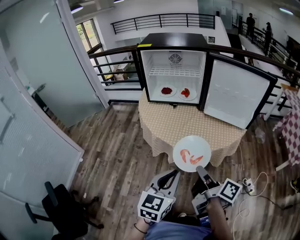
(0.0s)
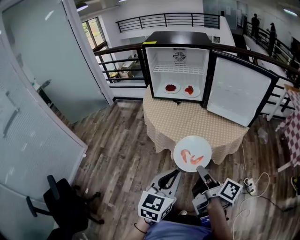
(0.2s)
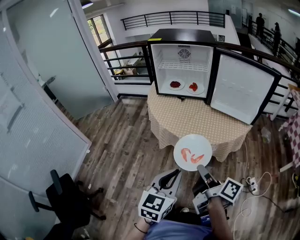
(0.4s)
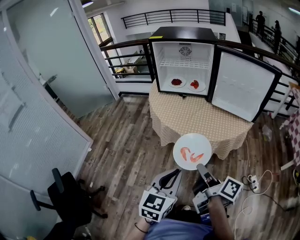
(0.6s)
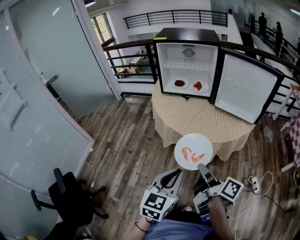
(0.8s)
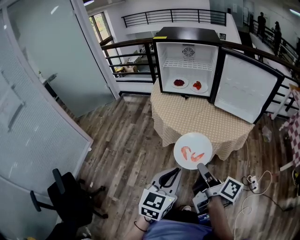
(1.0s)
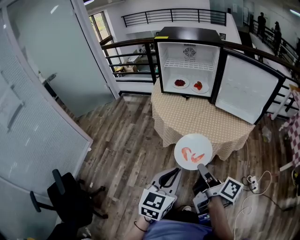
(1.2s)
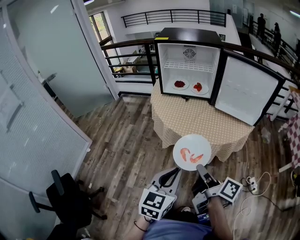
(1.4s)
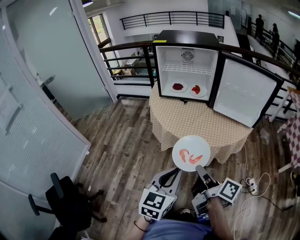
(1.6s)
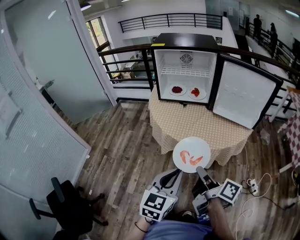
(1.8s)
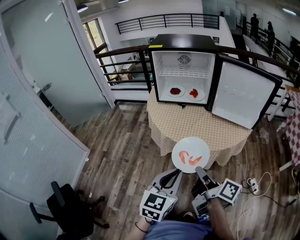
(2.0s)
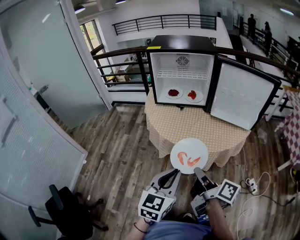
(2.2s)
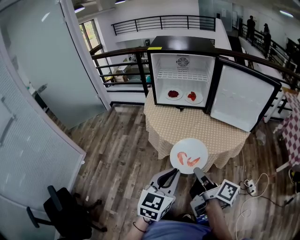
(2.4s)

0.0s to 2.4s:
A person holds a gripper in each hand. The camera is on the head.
0.0s to 1.2s: The left gripper goes about 5 cm backward, while the right gripper is displaced to the left by about 5 cm.
1.2s to 2.4s: The left gripper shifts about 5 cm forward; the right gripper changes place by about 5 cm.

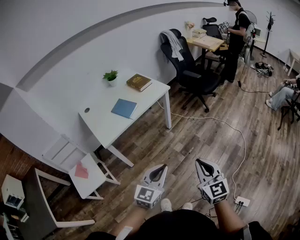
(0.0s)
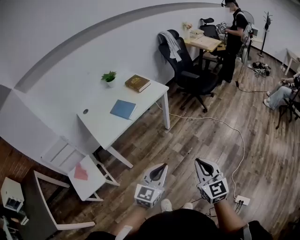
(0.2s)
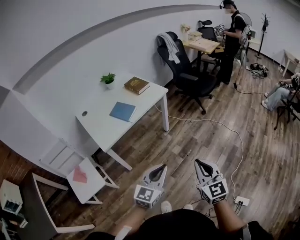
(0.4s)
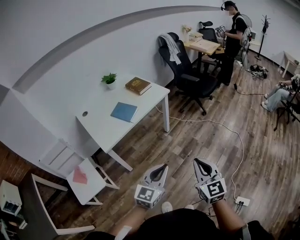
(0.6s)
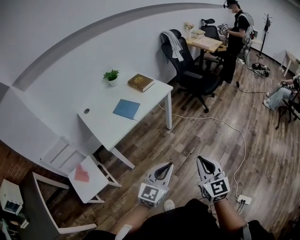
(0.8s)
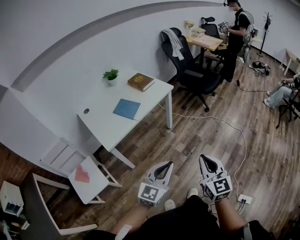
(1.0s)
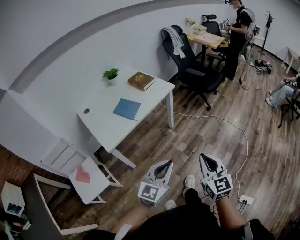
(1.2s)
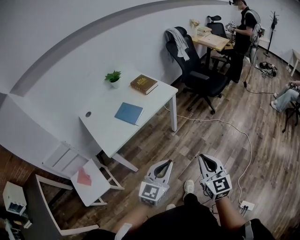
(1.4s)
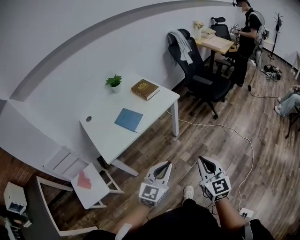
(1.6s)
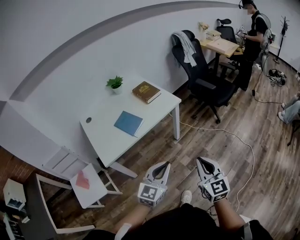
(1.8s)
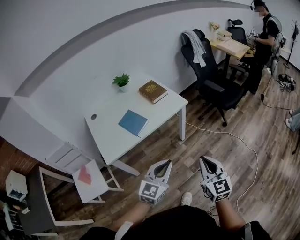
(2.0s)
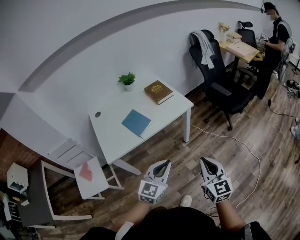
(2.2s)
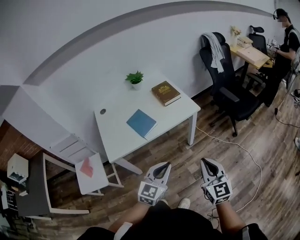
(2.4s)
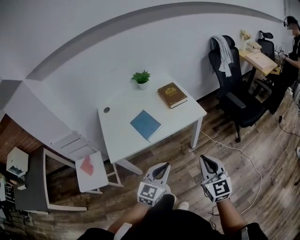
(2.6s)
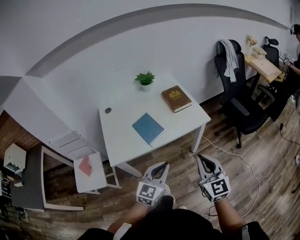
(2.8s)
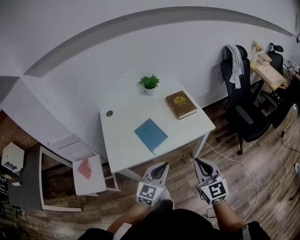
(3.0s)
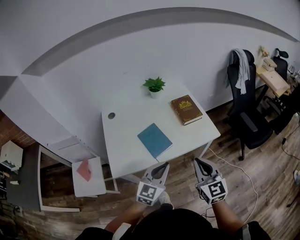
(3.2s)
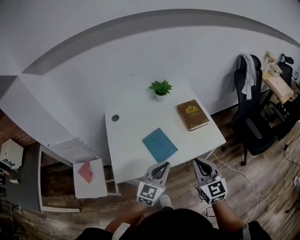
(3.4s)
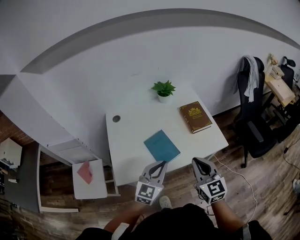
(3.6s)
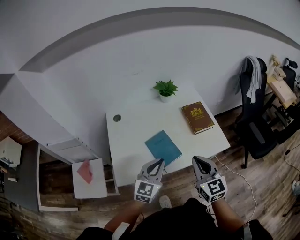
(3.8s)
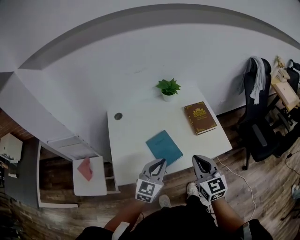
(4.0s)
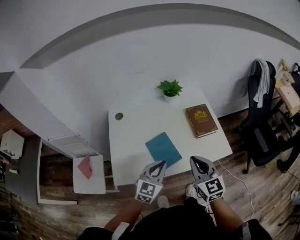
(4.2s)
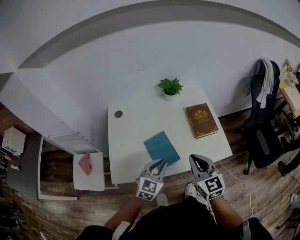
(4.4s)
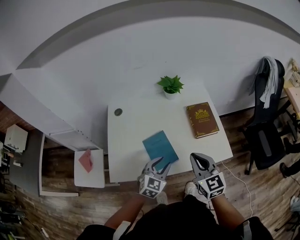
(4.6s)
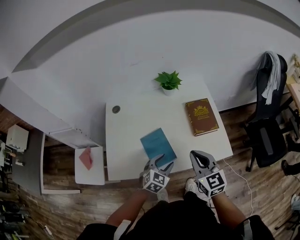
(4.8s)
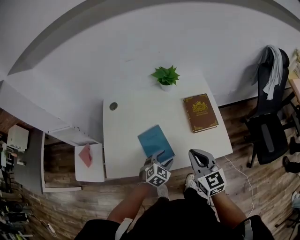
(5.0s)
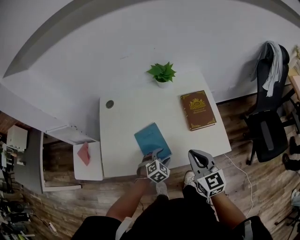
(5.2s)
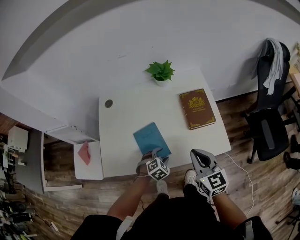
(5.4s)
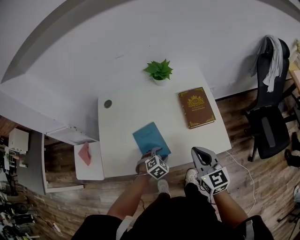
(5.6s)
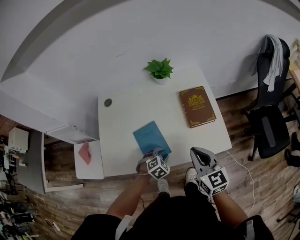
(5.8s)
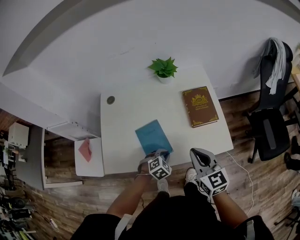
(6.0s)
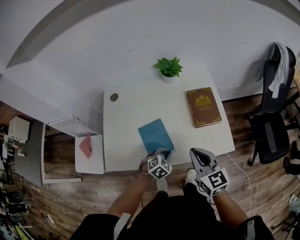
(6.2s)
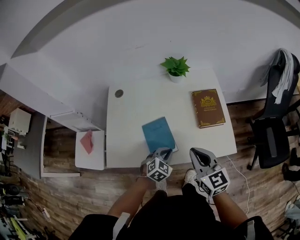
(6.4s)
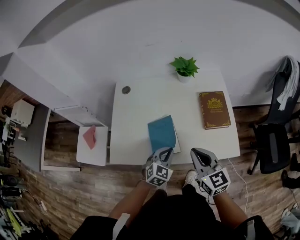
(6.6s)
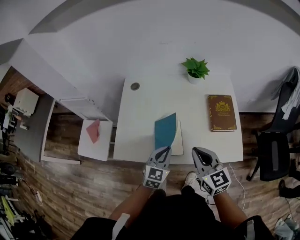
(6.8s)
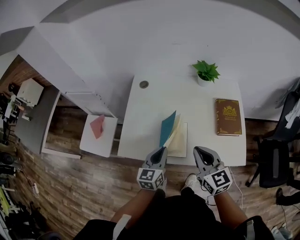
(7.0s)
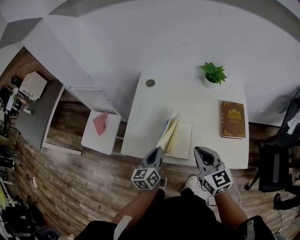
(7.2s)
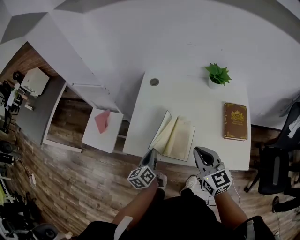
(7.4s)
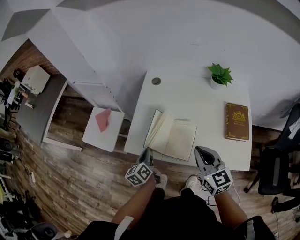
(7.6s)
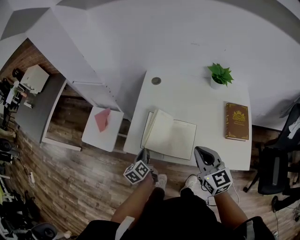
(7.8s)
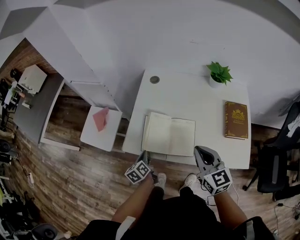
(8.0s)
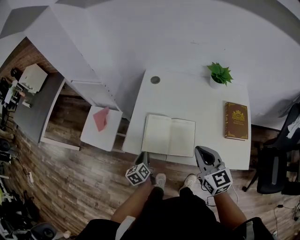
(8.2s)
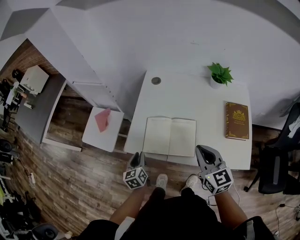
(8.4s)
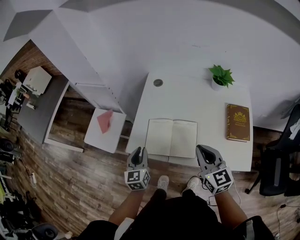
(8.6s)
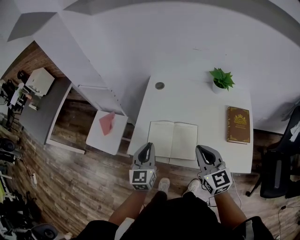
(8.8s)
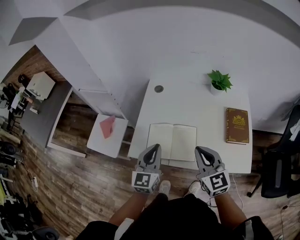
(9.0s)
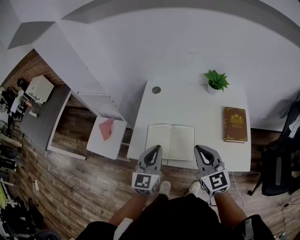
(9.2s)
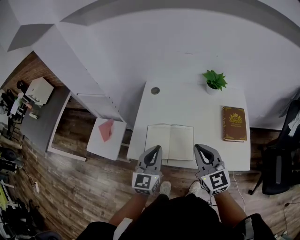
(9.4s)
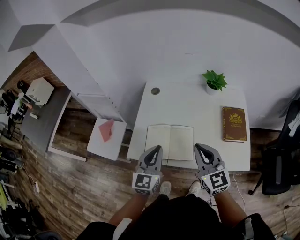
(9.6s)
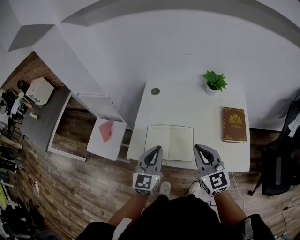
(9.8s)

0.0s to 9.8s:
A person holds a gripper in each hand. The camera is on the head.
0.0s to 1.4s: Both grippers move forward and to the left, some 10 cm.
1.4s to 2.8s: Both grippers move forward, some 25 cm. The right gripper swivels approximately 30 degrees. The left gripper turns by about 20 degrees.
2.8s to 4.2s: Both grippers travel together forward and to the left, roughly 25 cm.
4.2s to 5.6s: The right gripper shifts about 15 cm to the right, forward and downward. The left gripper goes approximately 20 cm downward, tilts its fingers roughly 50 degrees downward, and opens.
5.6s to 7.0s: The left gripper is displaced upward and to the left by roughly 20 cm, tilts its fingers some 50 degrees upward, and closes its fingers. Meanwhile the right gripper travels to the left by roughly 15 cm.
7.0s to 8.4s: The right gripper moves roughly 5 cm. The left gripper is displaced to the left and downward by approximately 20 cm, and changes its angle by roughly 30 degrees.
8.4s to 9.8s: The right gripper shifts some 5 cm upward. Meanwhile the left gripper goes roughly 25 cm upward and to the right, and rotates roughly 40 degrees.

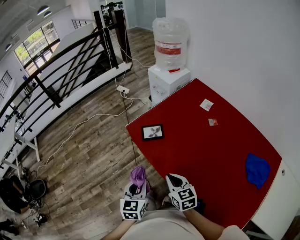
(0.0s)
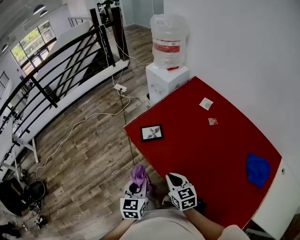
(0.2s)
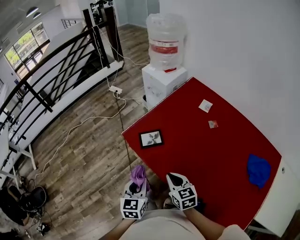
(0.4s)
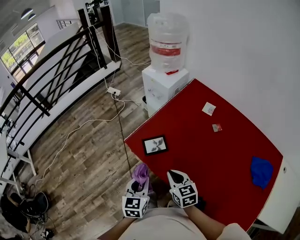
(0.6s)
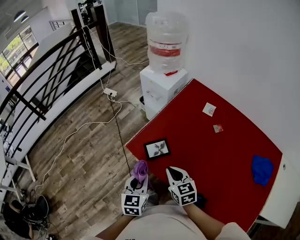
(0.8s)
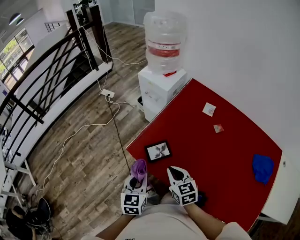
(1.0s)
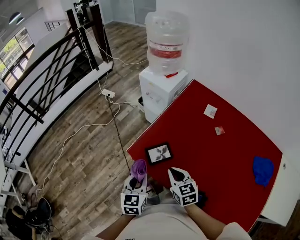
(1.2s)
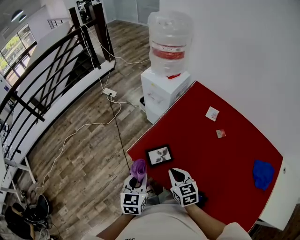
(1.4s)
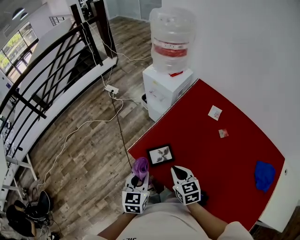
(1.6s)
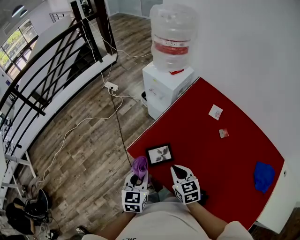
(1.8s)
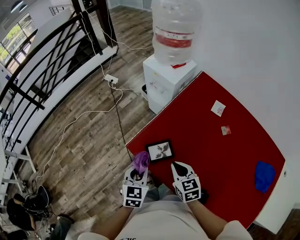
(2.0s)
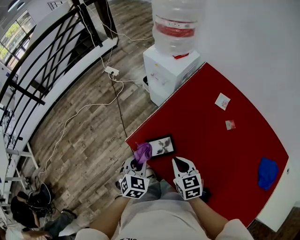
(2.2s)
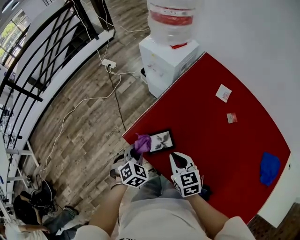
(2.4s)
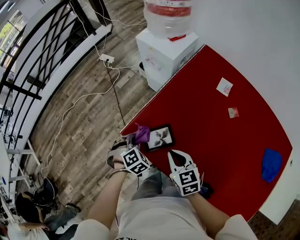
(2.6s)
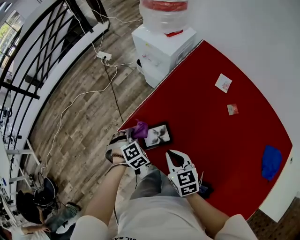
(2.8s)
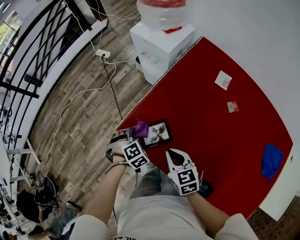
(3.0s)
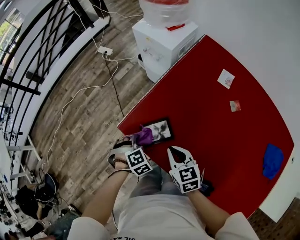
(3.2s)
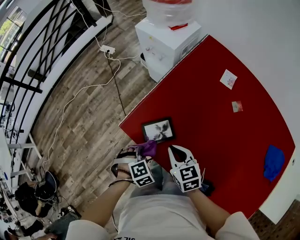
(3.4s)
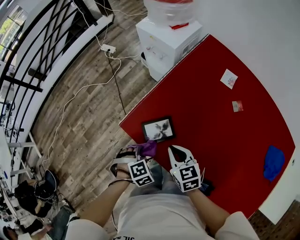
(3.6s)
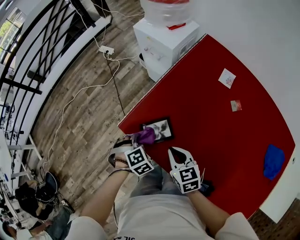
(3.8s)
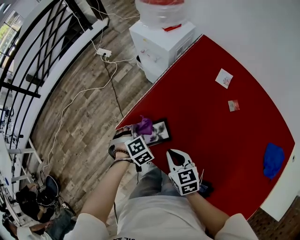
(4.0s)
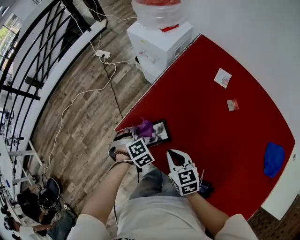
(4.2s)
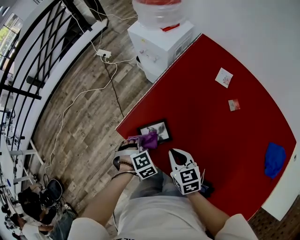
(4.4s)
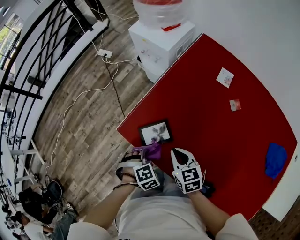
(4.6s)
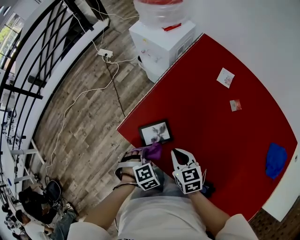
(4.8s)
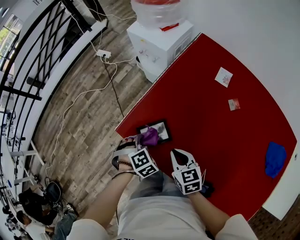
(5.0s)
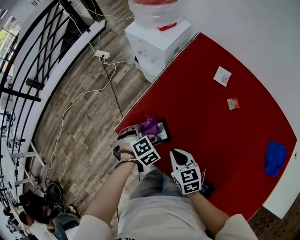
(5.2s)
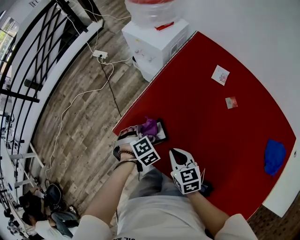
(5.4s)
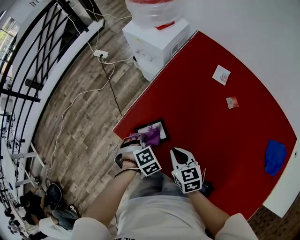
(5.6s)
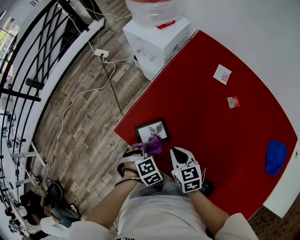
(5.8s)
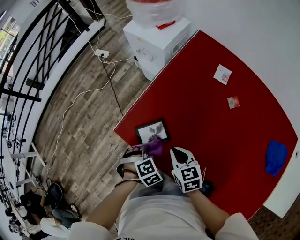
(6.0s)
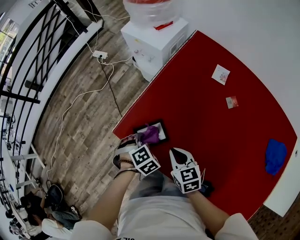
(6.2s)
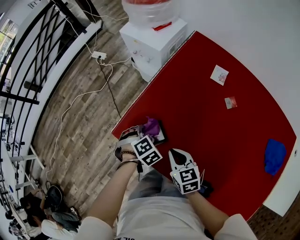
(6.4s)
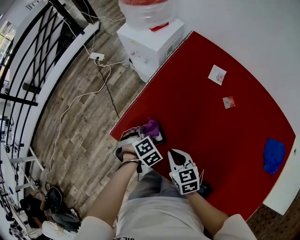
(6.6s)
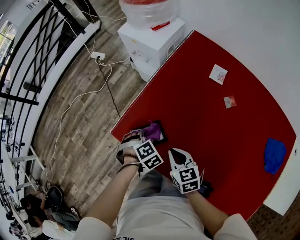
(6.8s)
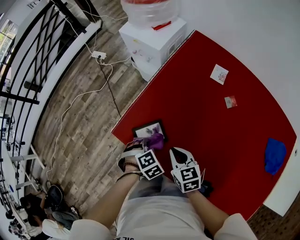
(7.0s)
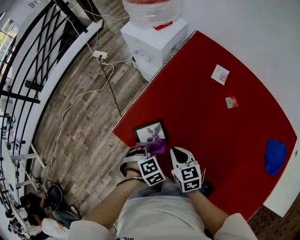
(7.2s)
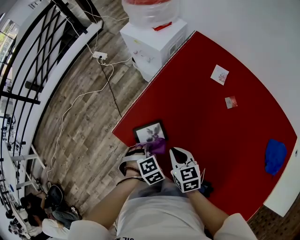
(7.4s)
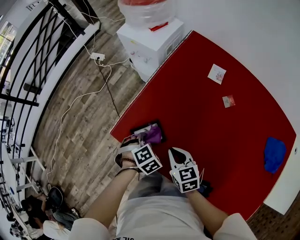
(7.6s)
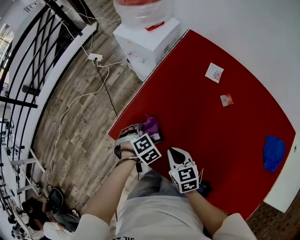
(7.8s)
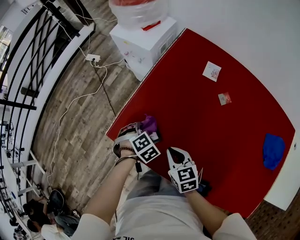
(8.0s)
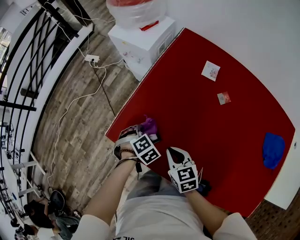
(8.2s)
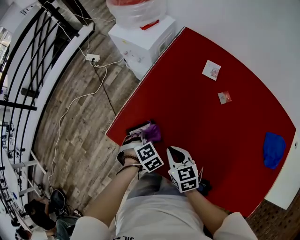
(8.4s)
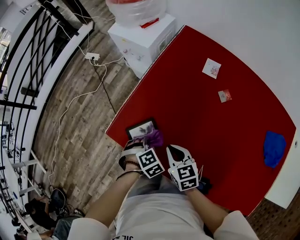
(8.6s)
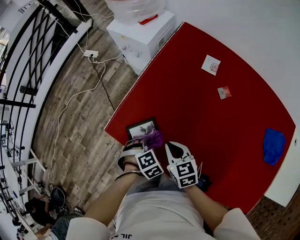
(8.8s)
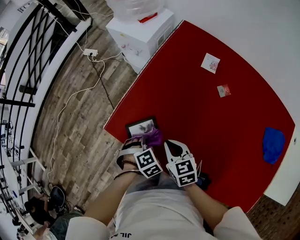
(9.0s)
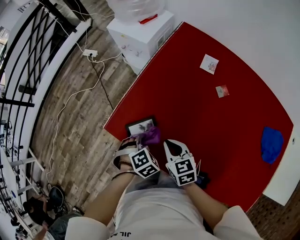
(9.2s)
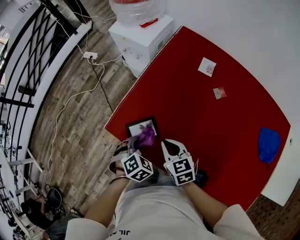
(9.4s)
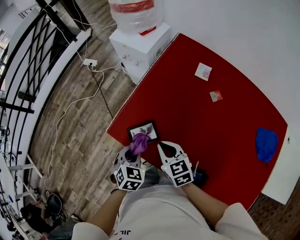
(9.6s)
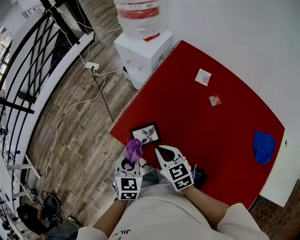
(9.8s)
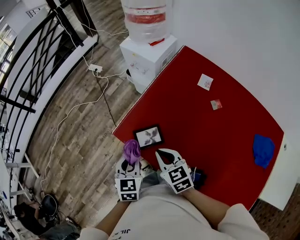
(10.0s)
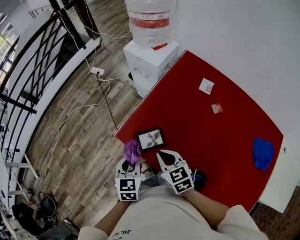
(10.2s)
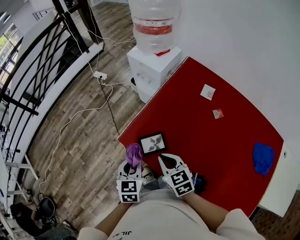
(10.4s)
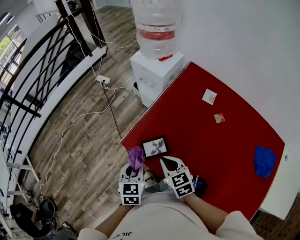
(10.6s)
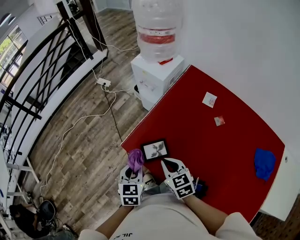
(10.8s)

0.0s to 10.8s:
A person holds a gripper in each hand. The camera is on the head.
0.0s to 1.6s: The grippers both shift forward by approximately 25 cm.
1.6s to 3.0s: The left gripper goes about 20 cm downward and forward, and rotates around the line of its fingers by about 60 degrees, clockwise from behind; the right gripper goes approximately 5 cm downward.
3.0s to 4.6s: The left gripper moves about 10 cm.
6.2s to 7.8s: The left gripper shifts by about 5 cm.
7.8s to 9.2s: The left gripper moves about 10 cm.
9.2s to 10.8s: The right gripper shifts about 10 cm upward and to the left. The left gripper is displaced upward and to the left by about 20 cm, and rotates around the line of its fingers by about 50 degrees, counterclockwise from behind.
